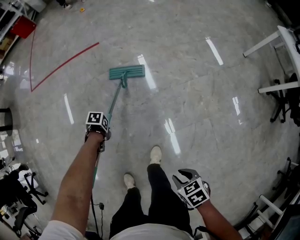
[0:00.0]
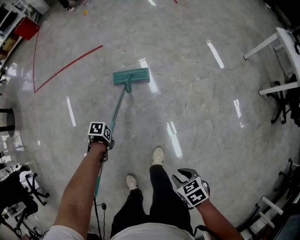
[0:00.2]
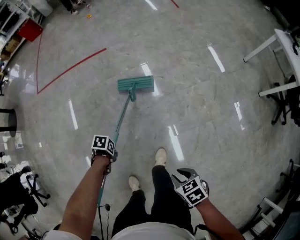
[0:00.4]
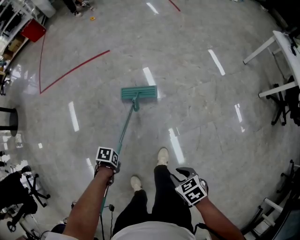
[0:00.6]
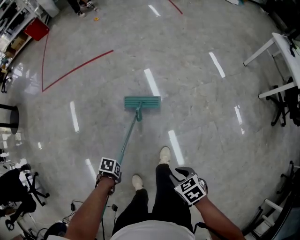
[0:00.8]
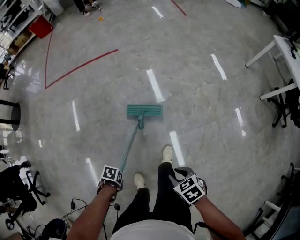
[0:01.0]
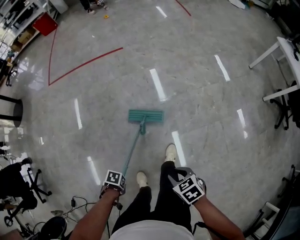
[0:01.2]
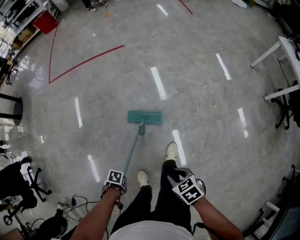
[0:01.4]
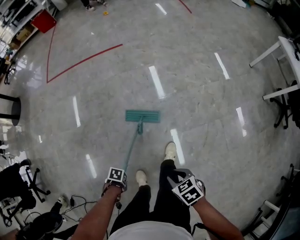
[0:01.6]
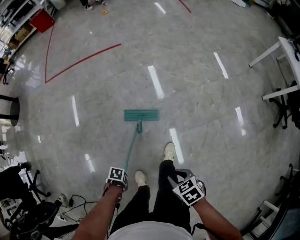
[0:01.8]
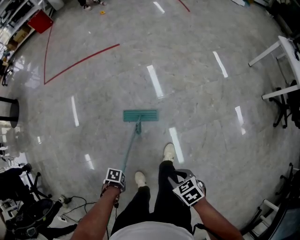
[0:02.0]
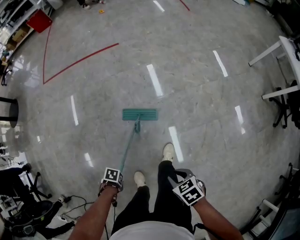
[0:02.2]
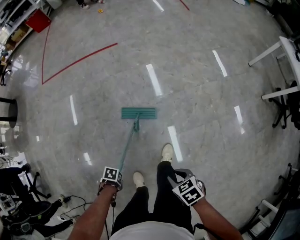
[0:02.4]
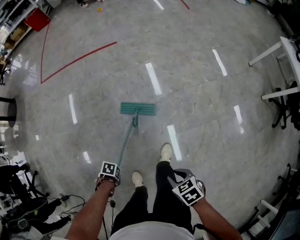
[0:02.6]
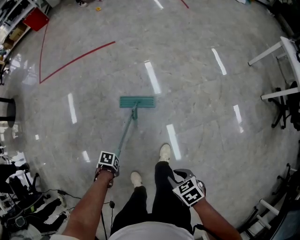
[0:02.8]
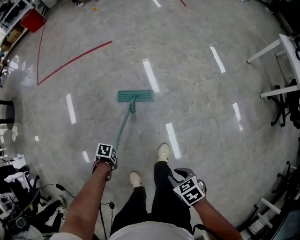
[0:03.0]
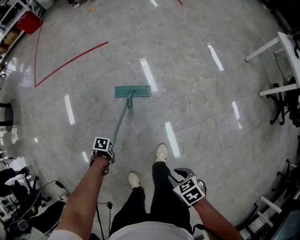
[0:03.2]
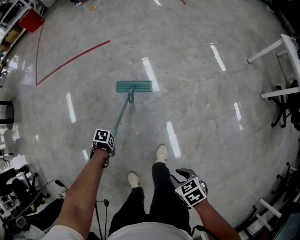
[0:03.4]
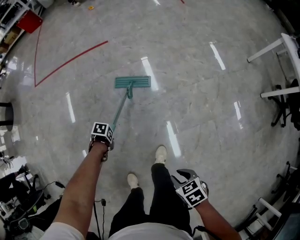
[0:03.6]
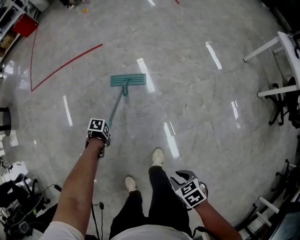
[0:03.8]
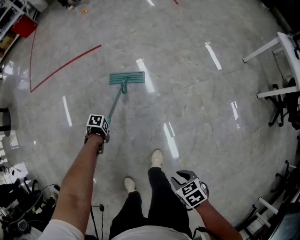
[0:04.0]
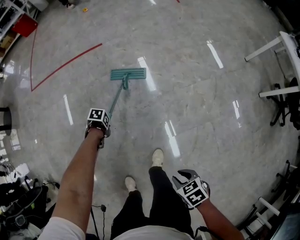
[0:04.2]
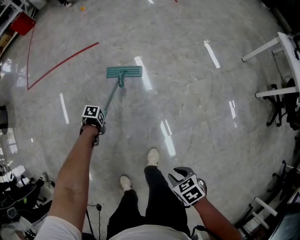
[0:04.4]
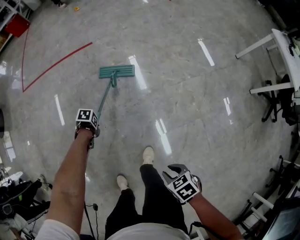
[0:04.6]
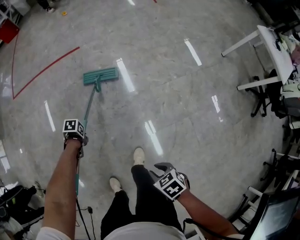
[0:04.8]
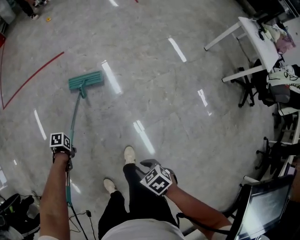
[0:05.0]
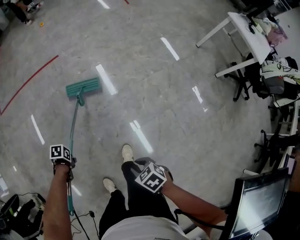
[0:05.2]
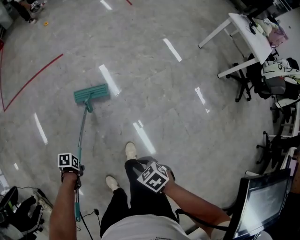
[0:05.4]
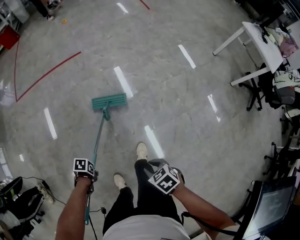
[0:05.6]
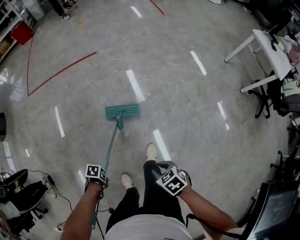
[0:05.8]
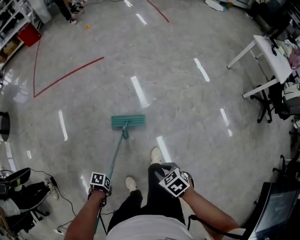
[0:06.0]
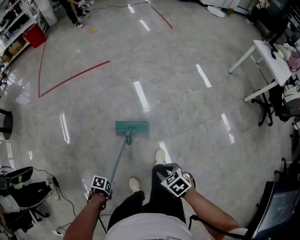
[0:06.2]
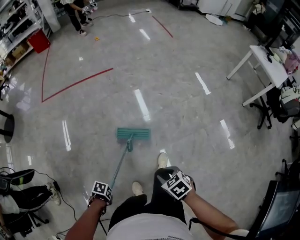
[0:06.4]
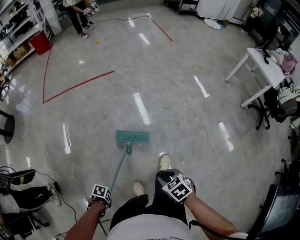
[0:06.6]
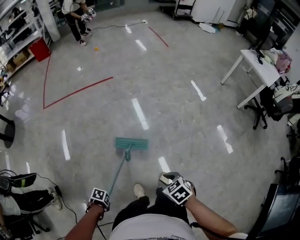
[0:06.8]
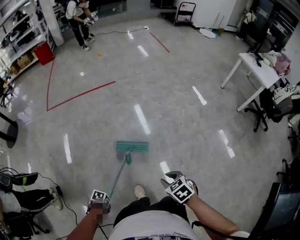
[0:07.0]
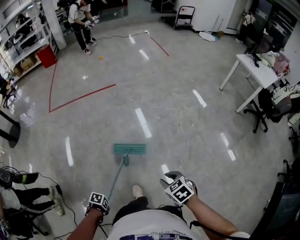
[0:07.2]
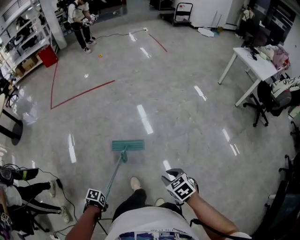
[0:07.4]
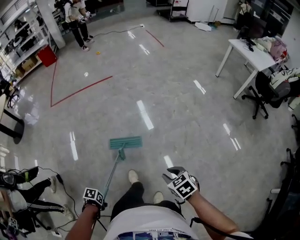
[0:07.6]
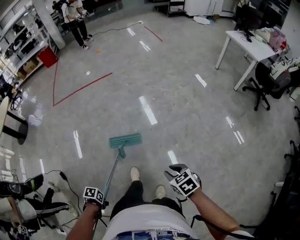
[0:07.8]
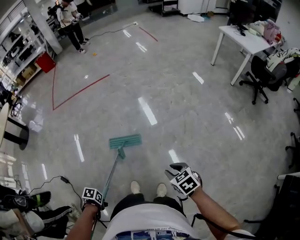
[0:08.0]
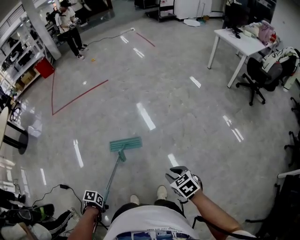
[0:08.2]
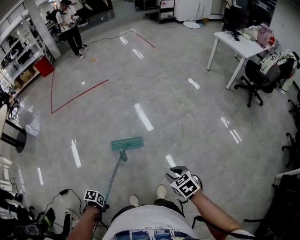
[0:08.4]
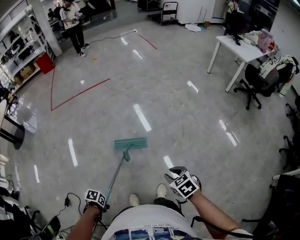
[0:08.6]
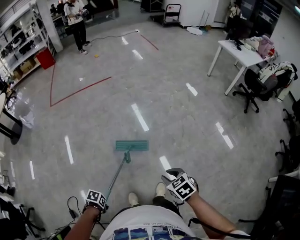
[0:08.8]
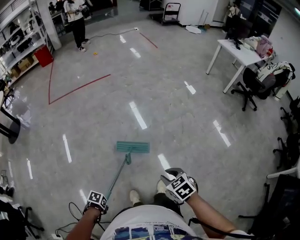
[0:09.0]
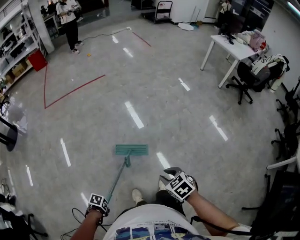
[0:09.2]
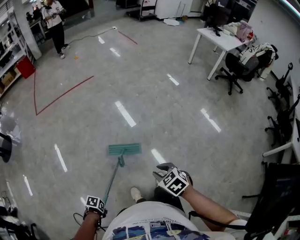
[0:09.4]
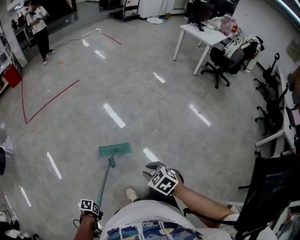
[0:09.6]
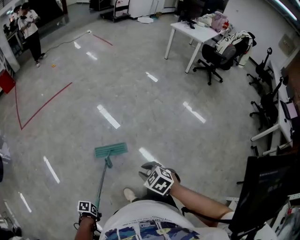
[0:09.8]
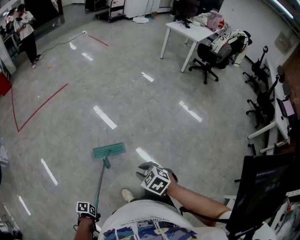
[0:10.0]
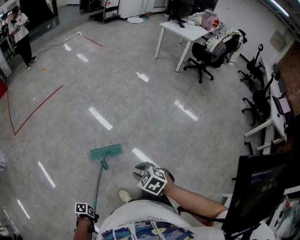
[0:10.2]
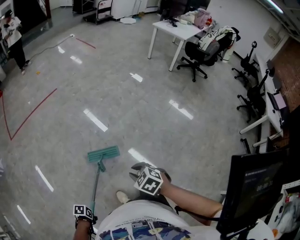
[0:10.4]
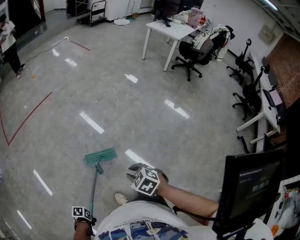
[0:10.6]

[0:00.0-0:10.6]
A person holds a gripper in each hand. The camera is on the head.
0:00.0 to 0:01.6: The right gripper ends up roughly 15 cm from where it was.
0:01.6 to 0:03.0: The right gripper ends up about 5 cm from where it was.
0:03.0 to 0:04.6: The right gripper changes place by about 10 cm.
0:04.6 to 0:06.0: The right gripper shifts by about 15 cm.
0:06.0 to 0:07.6: The right gripper ends up roughly 25 cm from where it was.
0:07.6 to 0:09.0: The right gripper ends up some 15 cm from where it was.

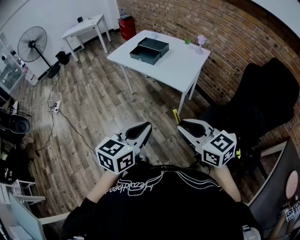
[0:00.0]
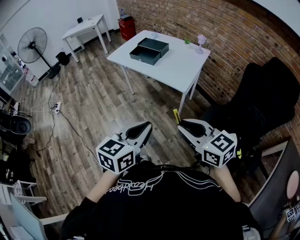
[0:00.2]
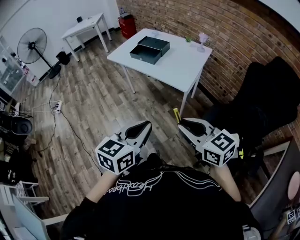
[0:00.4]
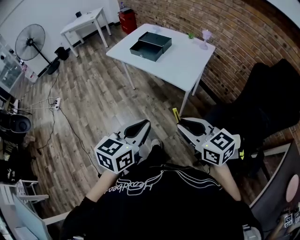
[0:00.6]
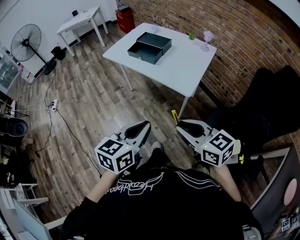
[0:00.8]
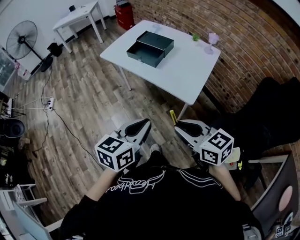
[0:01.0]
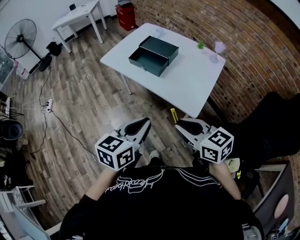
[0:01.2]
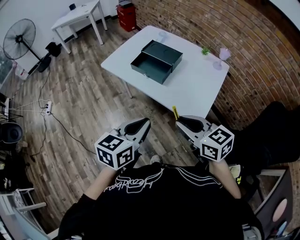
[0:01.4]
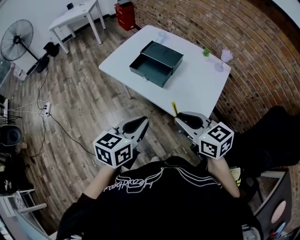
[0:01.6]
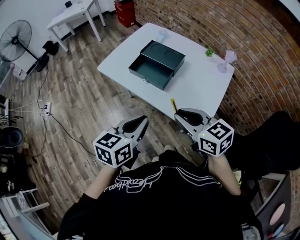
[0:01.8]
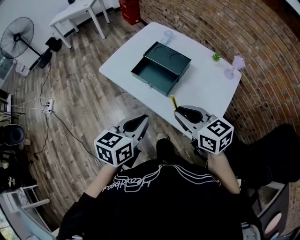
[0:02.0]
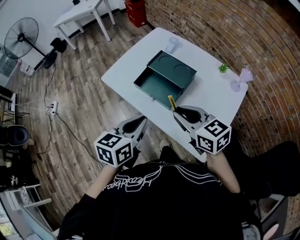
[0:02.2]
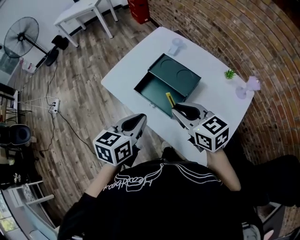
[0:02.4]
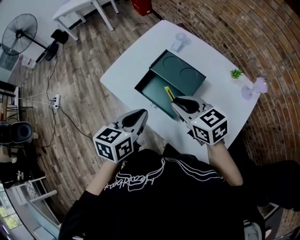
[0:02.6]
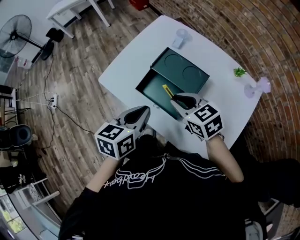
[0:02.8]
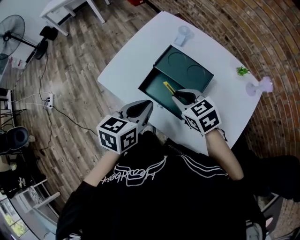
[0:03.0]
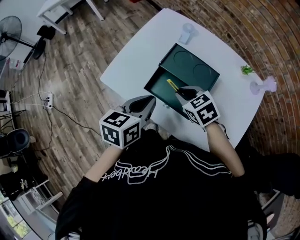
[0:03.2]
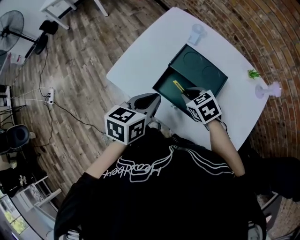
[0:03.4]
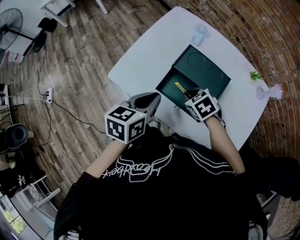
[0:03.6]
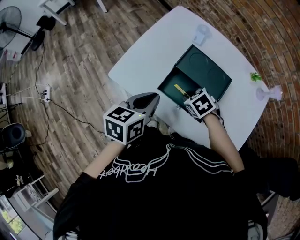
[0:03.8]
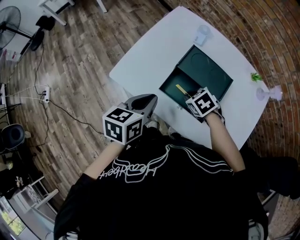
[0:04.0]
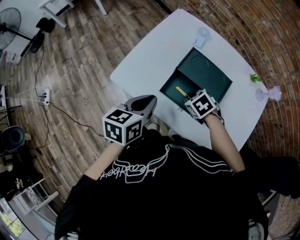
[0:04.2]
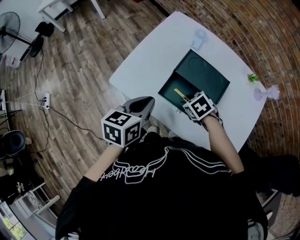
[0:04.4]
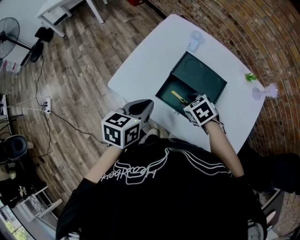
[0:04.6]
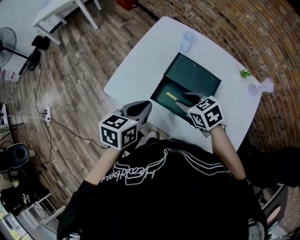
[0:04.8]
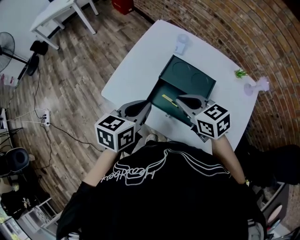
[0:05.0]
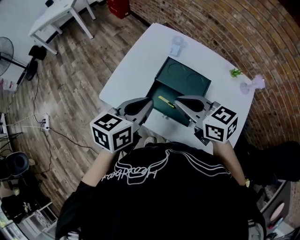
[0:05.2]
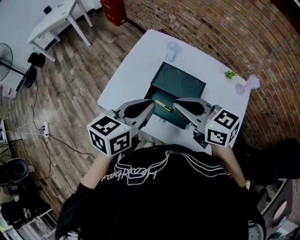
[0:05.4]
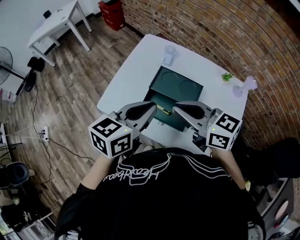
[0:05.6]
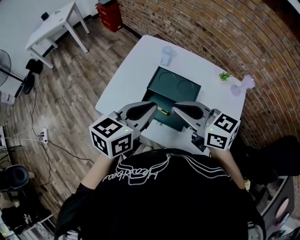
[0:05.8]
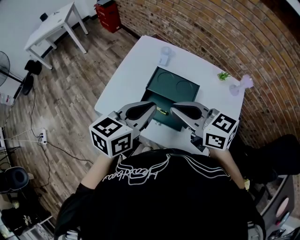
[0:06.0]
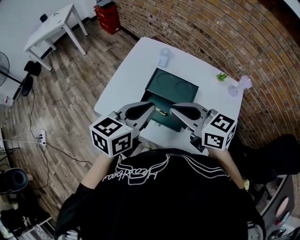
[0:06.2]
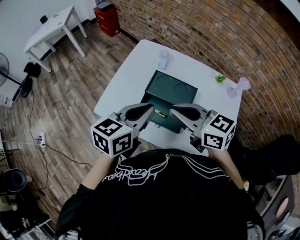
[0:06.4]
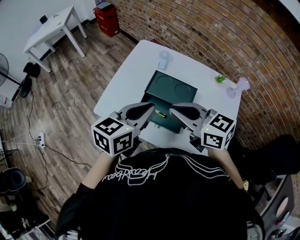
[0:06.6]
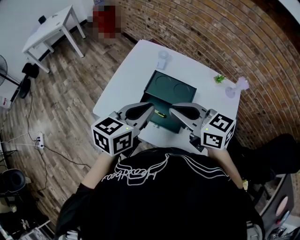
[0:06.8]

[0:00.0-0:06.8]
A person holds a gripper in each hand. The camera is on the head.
0:00.0 to 0:01.4: The two grippers go about 30 cm forward.
0:01.4 to 0:02.8: Both grippers move forward, roughly 35 cm.
0:02.8 to 0:04.0: The right gripper is displaced downward by some 15 cm, and points its fingers some 30 degrees further downward. Meanwhile the left gripper heads to the left and forward, covering approximately 10 cm.
0:04.0 to 0:05.4: The left gripper moves upward and to the right, approximately 15 cm, and rotates approximately 20 degrees; the right gripper is displaced upward by approximately 25 cm, angles its fingers upward, by roughly 50 degrees, and opens, then closes again.
0:05.4 to 0:06.8: There are only small adjustments of the grippers.

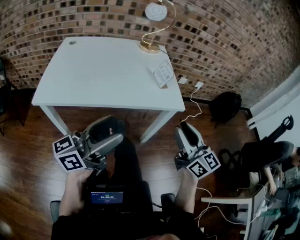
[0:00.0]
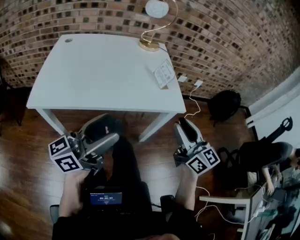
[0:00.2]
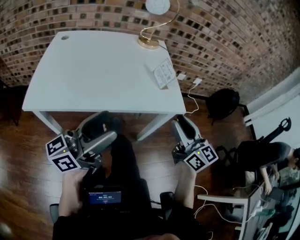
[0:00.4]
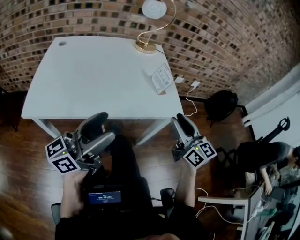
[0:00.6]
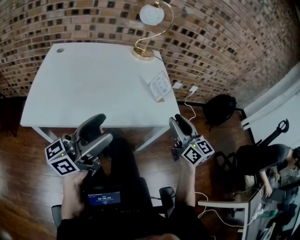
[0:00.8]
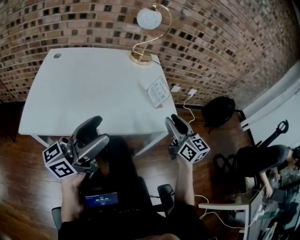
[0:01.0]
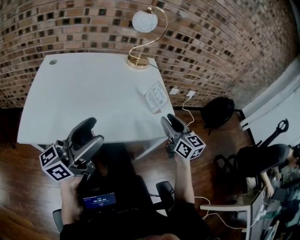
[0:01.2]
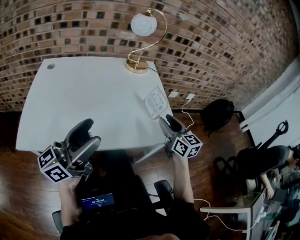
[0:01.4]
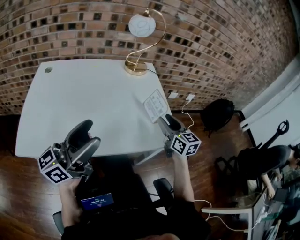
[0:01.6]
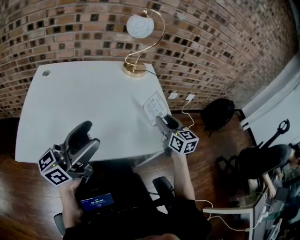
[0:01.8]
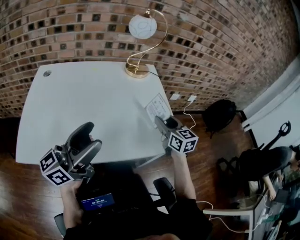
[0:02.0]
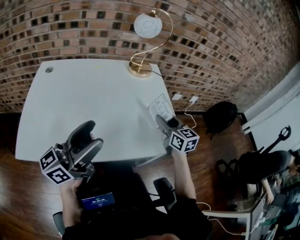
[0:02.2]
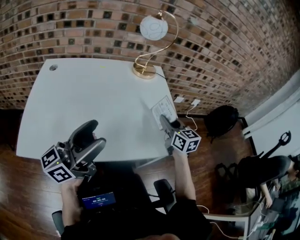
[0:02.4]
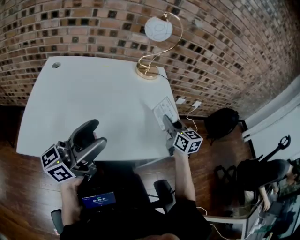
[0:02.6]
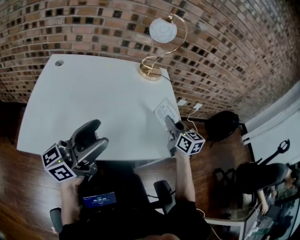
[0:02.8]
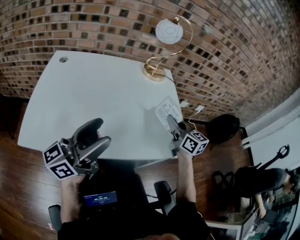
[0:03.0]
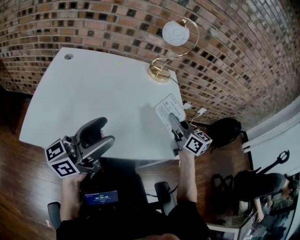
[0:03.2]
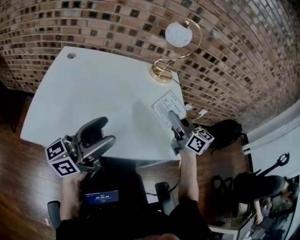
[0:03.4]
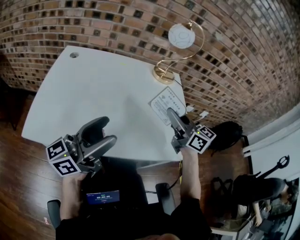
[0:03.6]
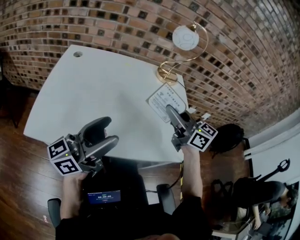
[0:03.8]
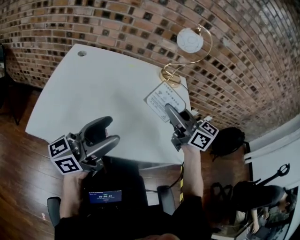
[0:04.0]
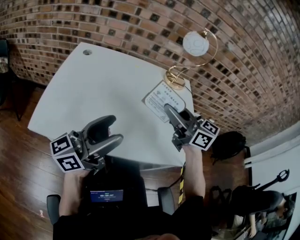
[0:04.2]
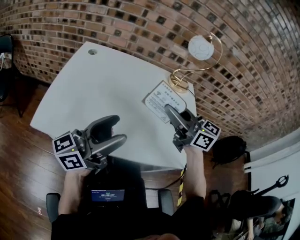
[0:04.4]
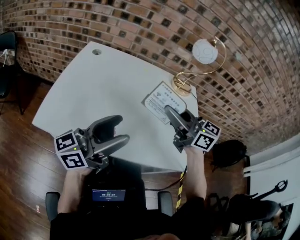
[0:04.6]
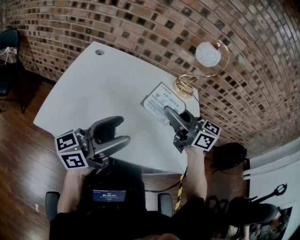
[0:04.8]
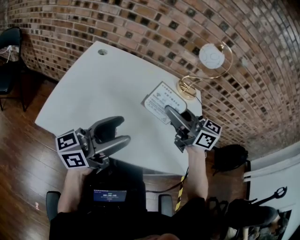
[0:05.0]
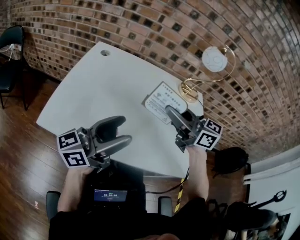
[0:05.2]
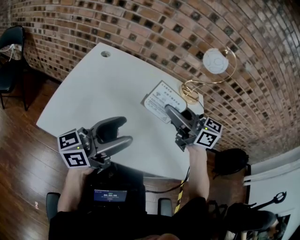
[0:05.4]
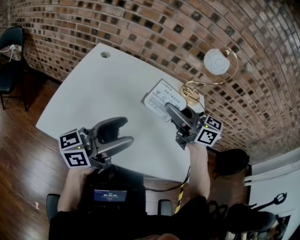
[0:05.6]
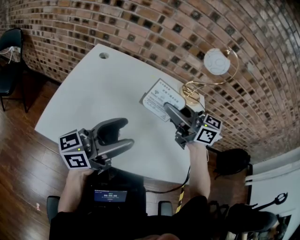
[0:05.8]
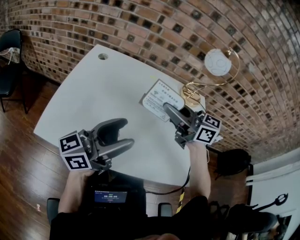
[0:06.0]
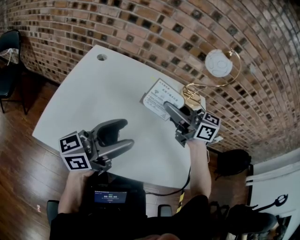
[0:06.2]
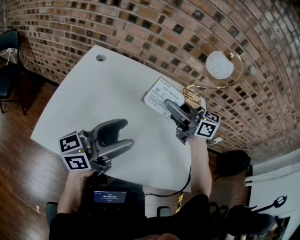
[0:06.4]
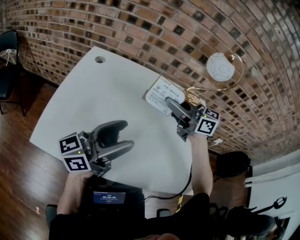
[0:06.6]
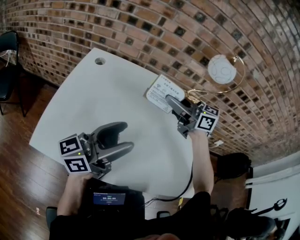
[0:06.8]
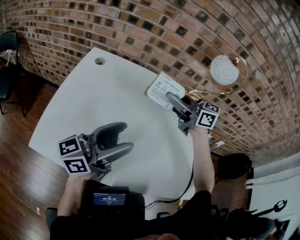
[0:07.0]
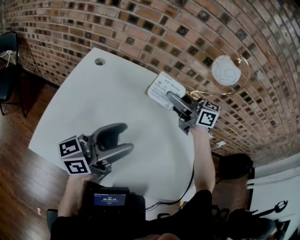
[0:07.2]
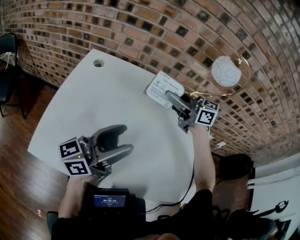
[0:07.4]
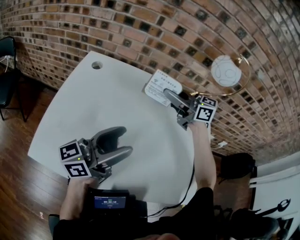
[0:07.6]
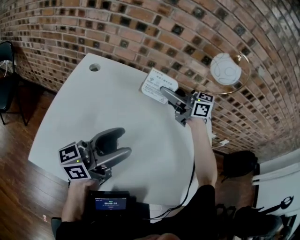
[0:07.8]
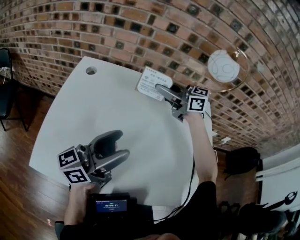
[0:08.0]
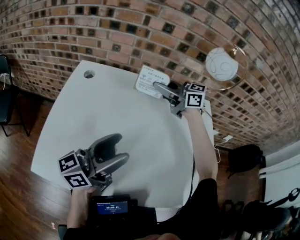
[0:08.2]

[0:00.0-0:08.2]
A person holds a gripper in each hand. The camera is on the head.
0:00.0 to 0:01.6: The right gripper heads forward, covering about 30 cm. Meanwhile the left gripper heads forward and to the left, covering roughly 20 cm.
0:01.6 to 0:03.2: The right gripper is displaced to the left by roughly 10 cm, swivels roughly 20 degrees, and closes.
0:03.2 to 0:05.0: The right gripper travels to the left and upward by approximately 20 cm, and changes its angle by roughly 40 degrees.
0:05.0 to 0:06.6: The right gripper is displaced forward by approximately 15 cm. Meanwhile the left gripper shifts some 5 cm forward.
0:06.6 to 0:08.2: The right gripper moves forward, approximately 15 cm.
